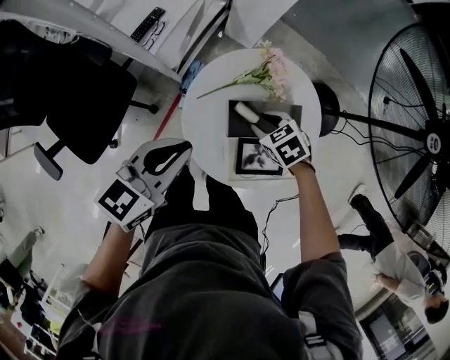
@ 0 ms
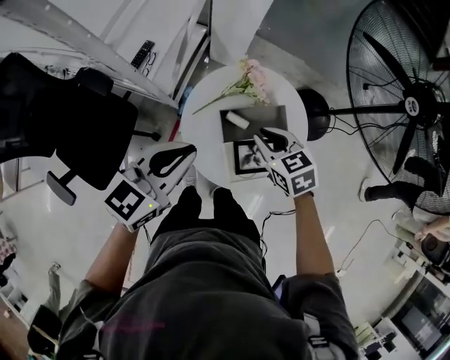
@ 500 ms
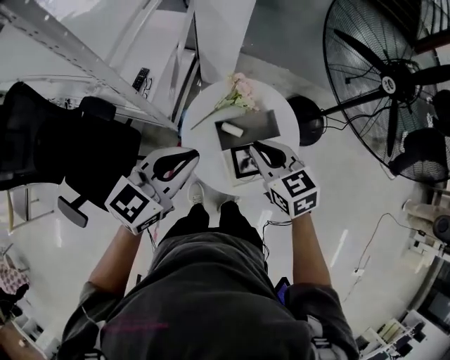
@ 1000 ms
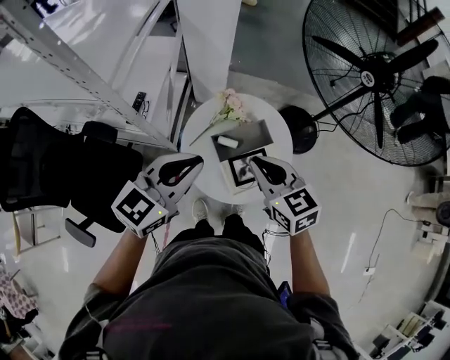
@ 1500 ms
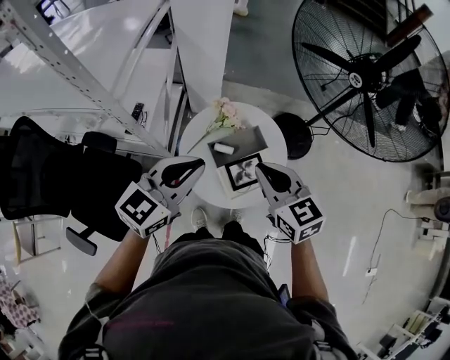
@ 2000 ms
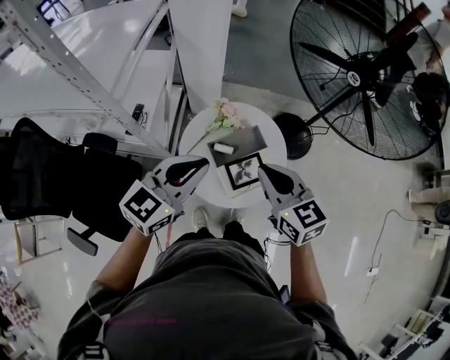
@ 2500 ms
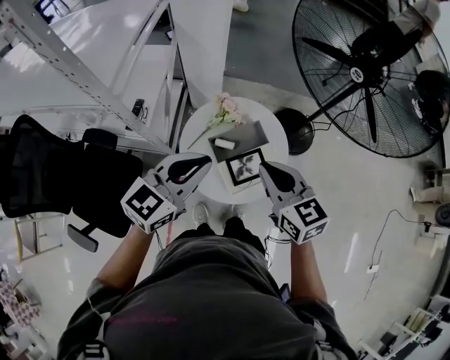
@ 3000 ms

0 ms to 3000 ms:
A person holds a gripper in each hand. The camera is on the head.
0 ms to 1500 ms: The left gripper heads upward, covering approximately 15 cm, and turns by about 30 degrees. The right gripper heads upward, covering roughly 30 cm, angles its fingers upward, by some 40 degrees, and closes.
1500 ms to 3000 ms: The right gripper changes place by about 5 cm.

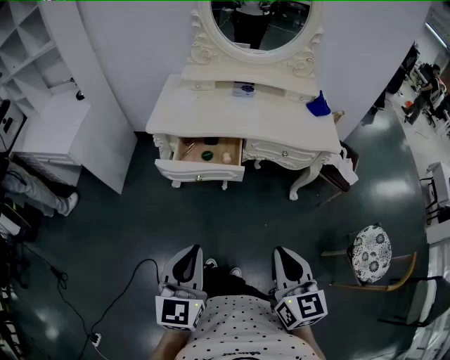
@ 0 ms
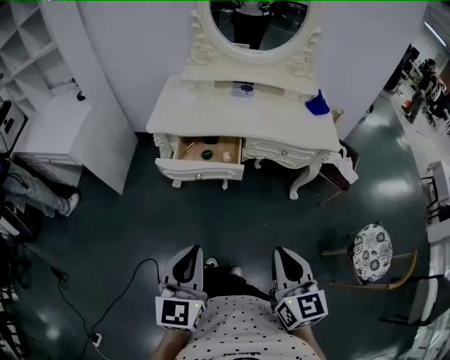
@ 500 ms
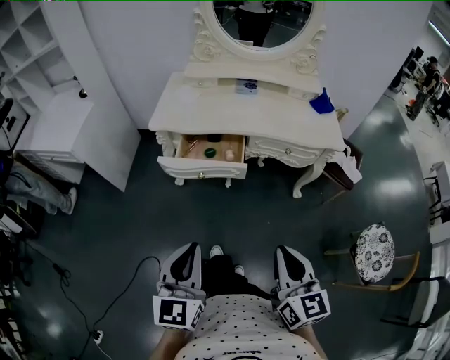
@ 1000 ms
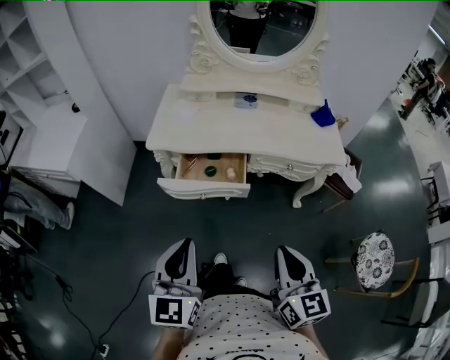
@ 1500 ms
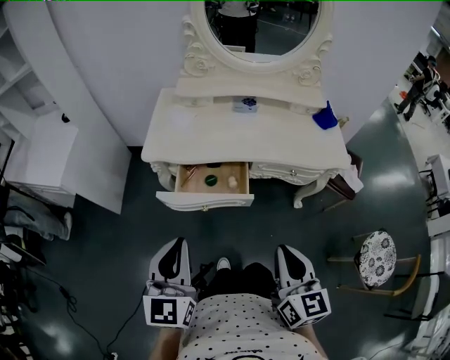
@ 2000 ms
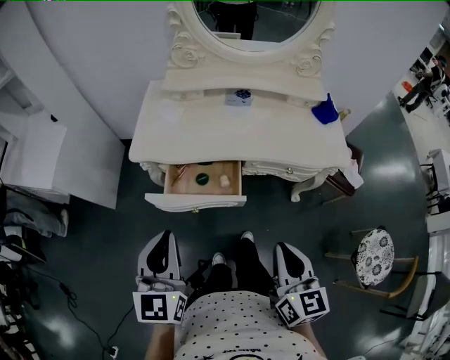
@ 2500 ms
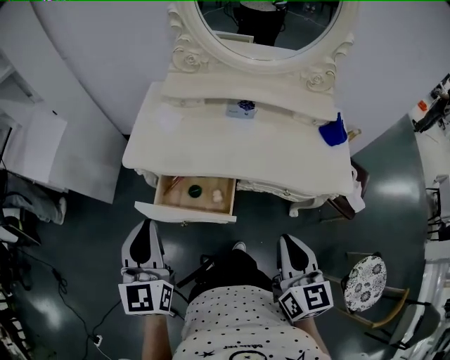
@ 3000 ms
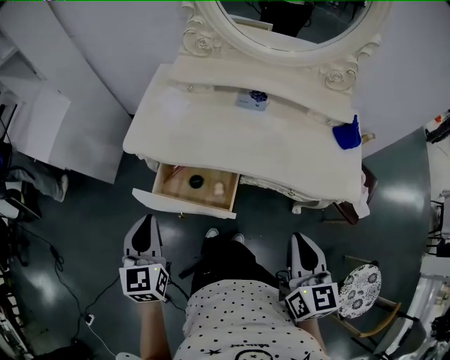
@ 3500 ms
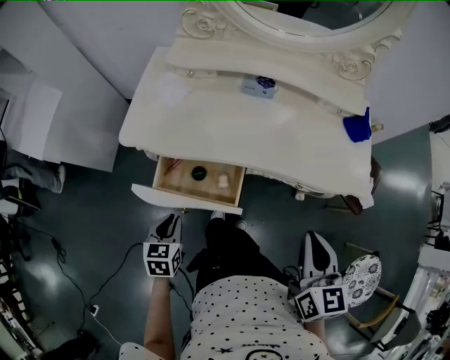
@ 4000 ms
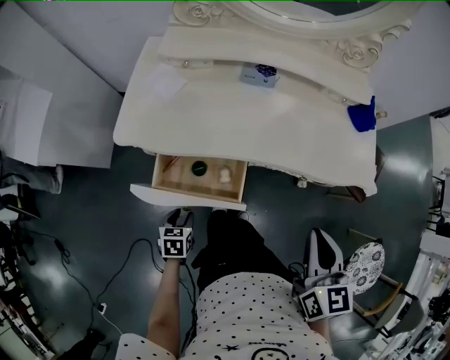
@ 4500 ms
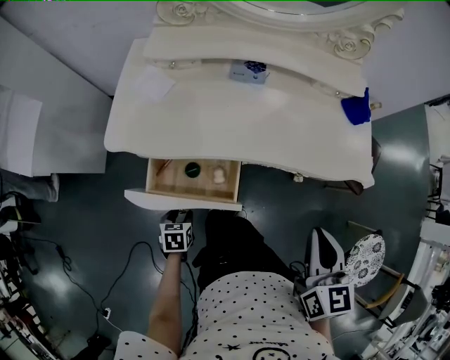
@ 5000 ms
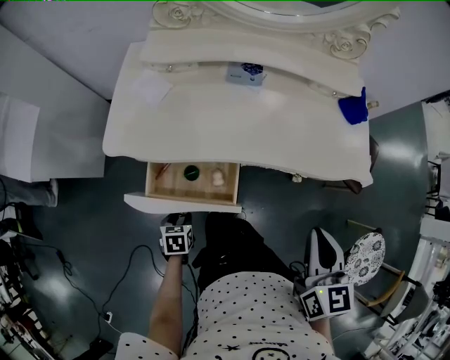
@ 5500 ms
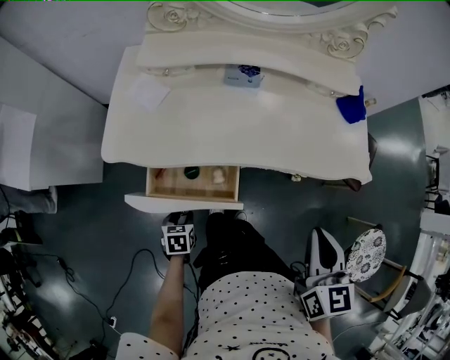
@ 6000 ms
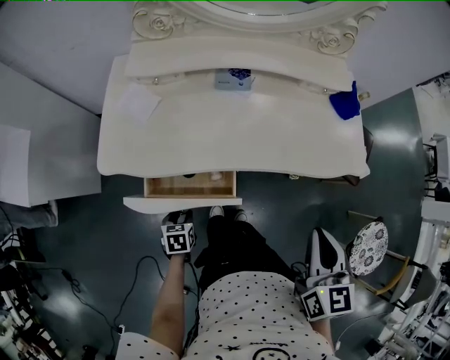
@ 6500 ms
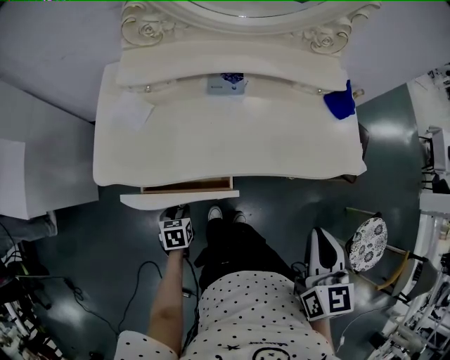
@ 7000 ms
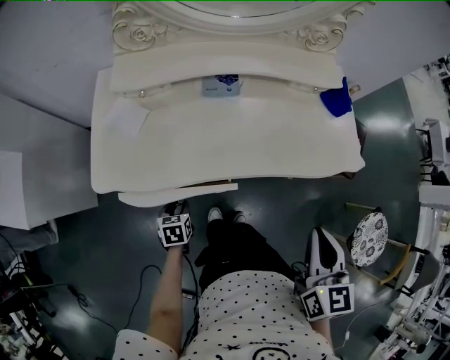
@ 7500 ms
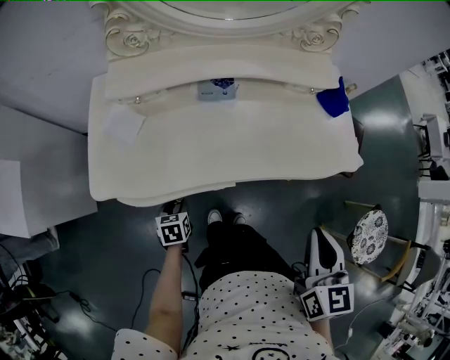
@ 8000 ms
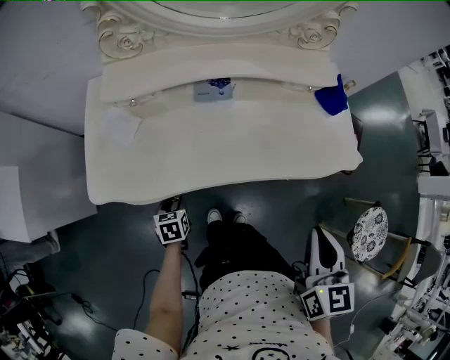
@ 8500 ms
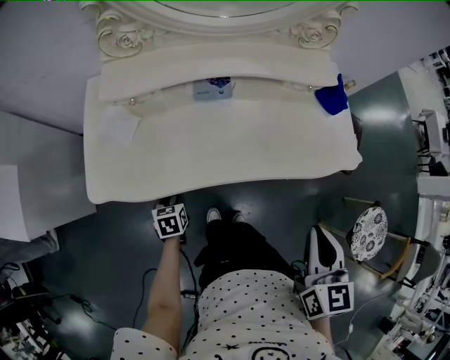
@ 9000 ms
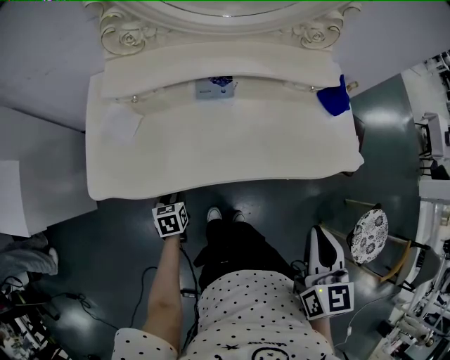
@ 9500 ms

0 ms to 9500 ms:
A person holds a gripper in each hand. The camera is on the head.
0 ms to 2000 ms: The right gripper heads forward, covering some 15 cm. The left gripper travels forward and to the left by about 20 cm.
2000 ms to 4000 ms: The left gripper heads downward and forward, covering approximately 30 cm, and tips its fingers downward by about 40 degrees, while the right gripper goes about 25 cm forward and to the right.
4000 ms to 5500 ms: The left gripper is displaced downward by some 15 cm, and opens up.
5500 ms to 7500 ms: The left gripper travels forward by roughly 10 cm.
7500 ms to 9500 ms: The left gripper is displaced forward by some 5 cm.

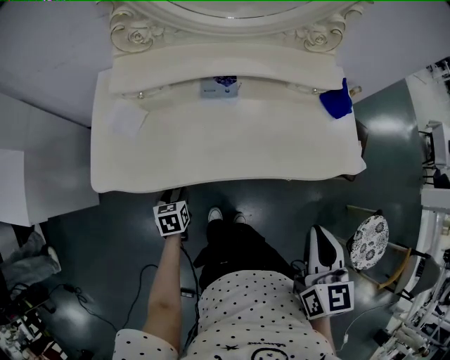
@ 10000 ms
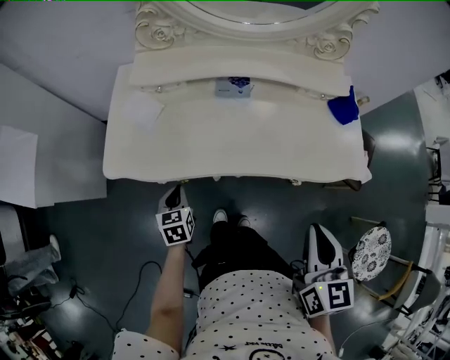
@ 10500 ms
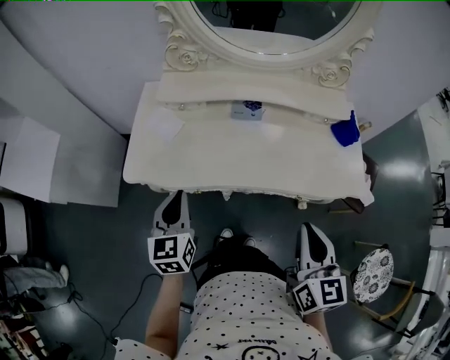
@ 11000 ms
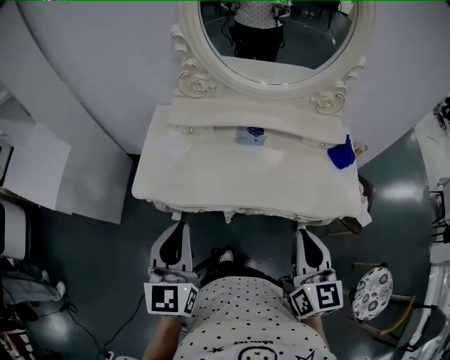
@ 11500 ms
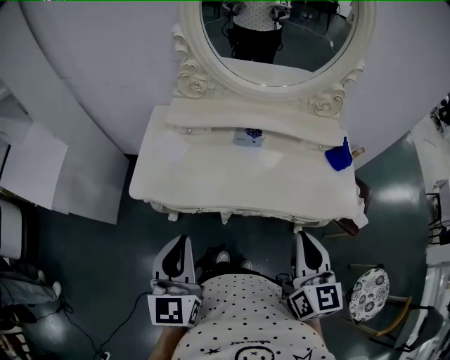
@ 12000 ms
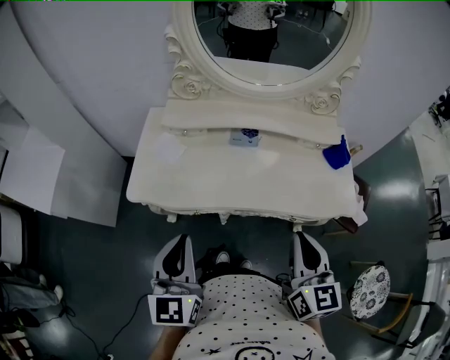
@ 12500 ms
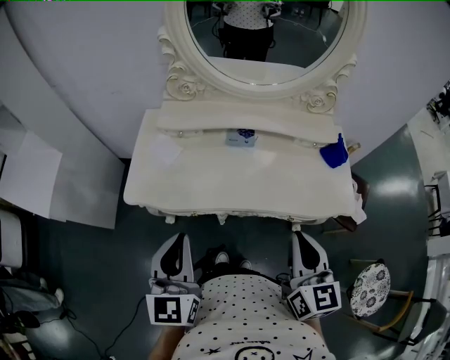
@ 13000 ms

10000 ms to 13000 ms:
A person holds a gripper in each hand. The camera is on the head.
10000 ms to 11500 ms: The right gripper shifts some 10 cm upward and to the left, and changes its angle by approximately 20 degrees, while the left gripper moves upward, some 40 cm, tips its fingers upward by approximately 50 degrees, and closes up.
11500 ms to 13000 ms: The grippers make only small movements.

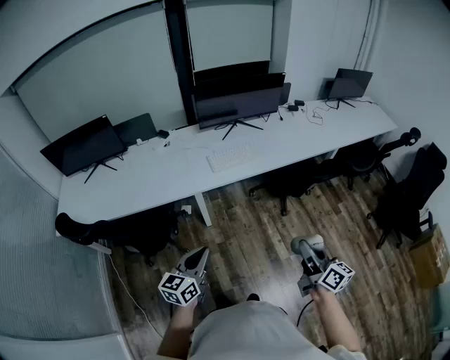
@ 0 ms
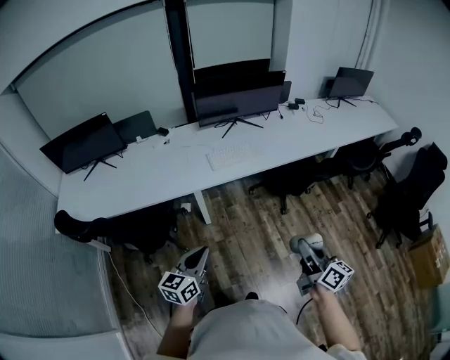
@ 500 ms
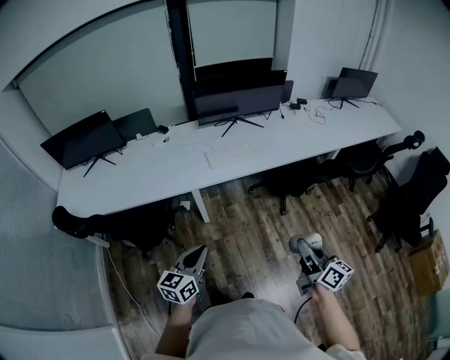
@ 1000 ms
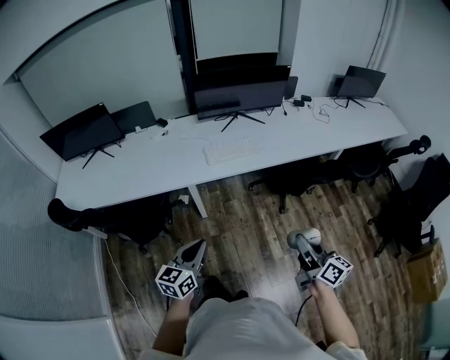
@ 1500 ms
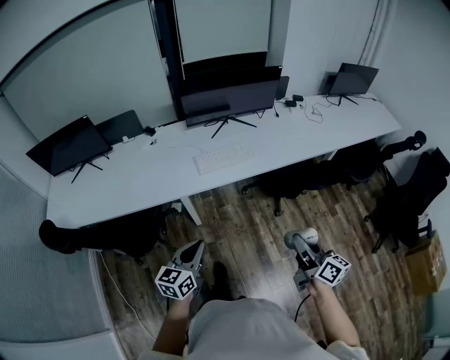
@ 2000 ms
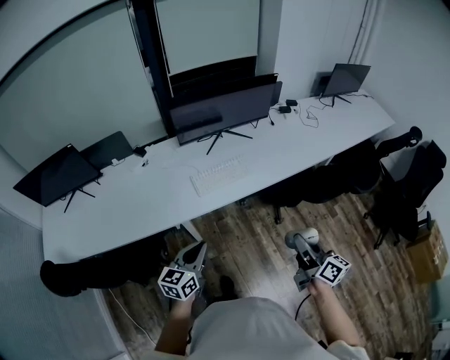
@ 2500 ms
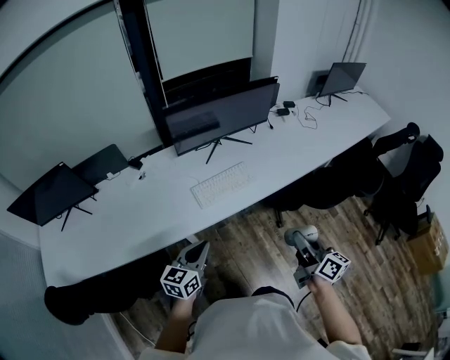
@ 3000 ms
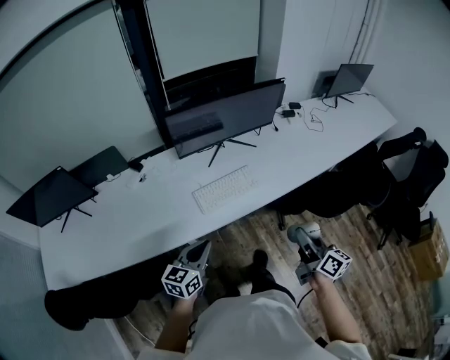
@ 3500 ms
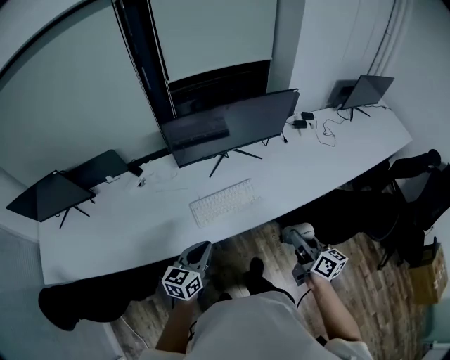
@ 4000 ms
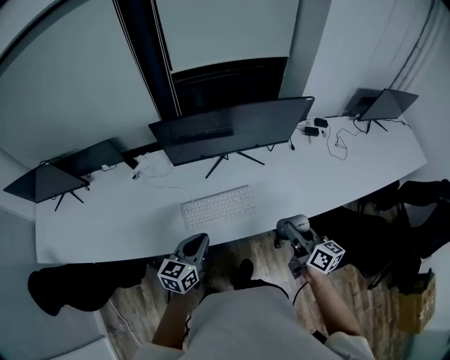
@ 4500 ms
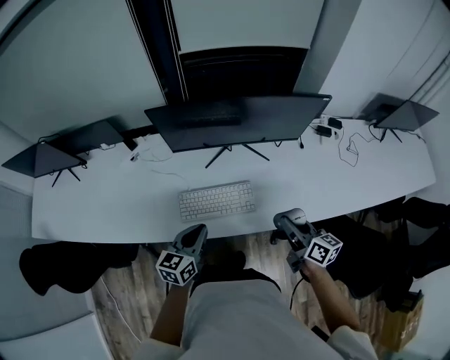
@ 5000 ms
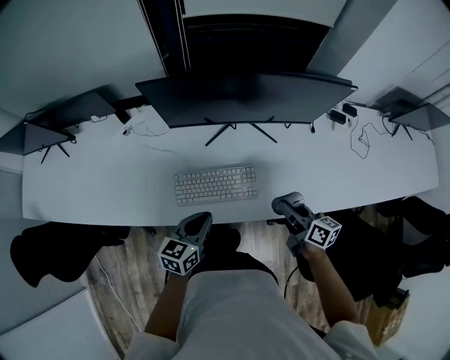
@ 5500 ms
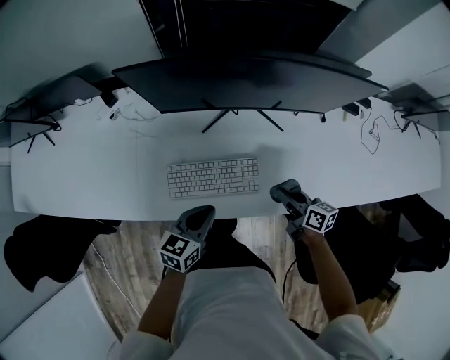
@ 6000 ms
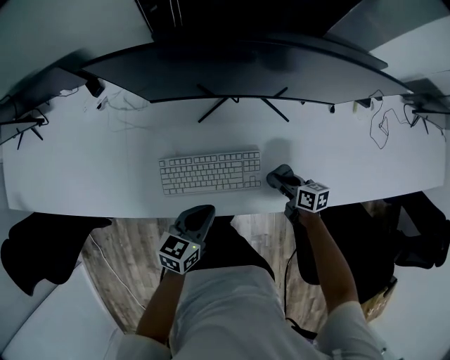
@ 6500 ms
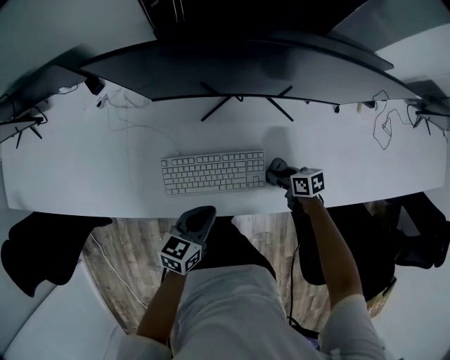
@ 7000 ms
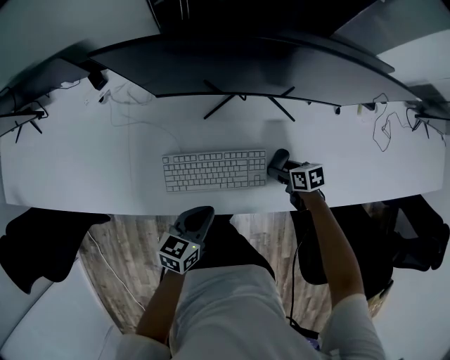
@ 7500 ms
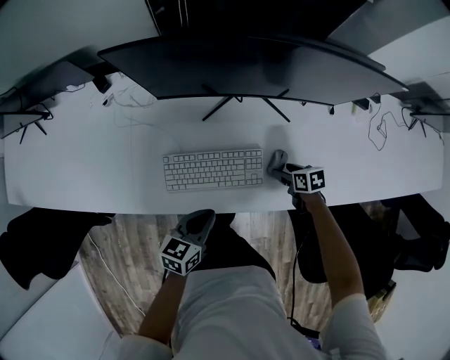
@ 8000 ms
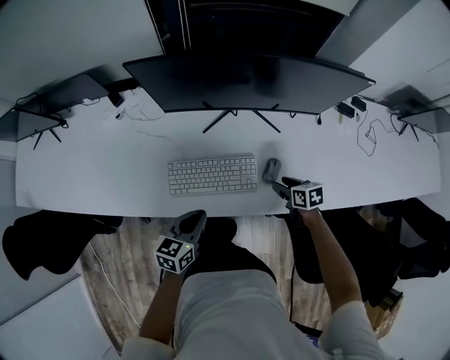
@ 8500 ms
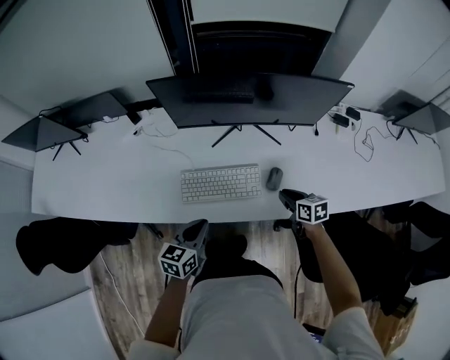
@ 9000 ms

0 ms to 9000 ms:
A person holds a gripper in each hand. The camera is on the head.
0 ms to 2000 ms: The left gripper is displaced forward and to the right by some 10 cm, while the right gripper goes roughly 10 cm forward.
2000 ms to 4500 ms: The two grippers go approximately 40 cm forward.
4500 ms to 7000 ms: The right gripper is displaced downward and forward by approximately 35 cm, and angles its fingers downward, by roughly 40 degrees. The left gripper travels downward by some 15 cm.
7000 ms to 9000 ms: The right gripper shifts roughly 15 cm upward, changes its angle by some 20 degrees, and opens and closes again. Meanwhile the left gripper goes about 10 cm upward and backward.

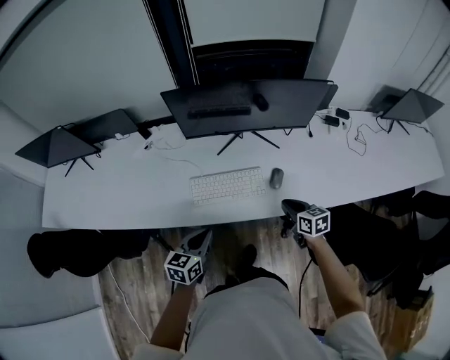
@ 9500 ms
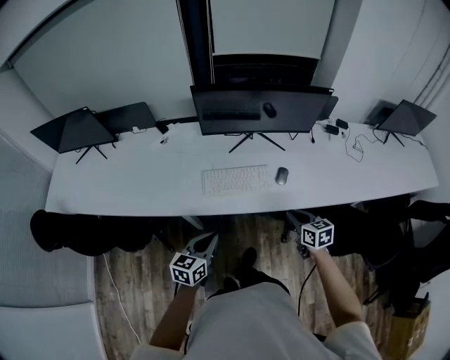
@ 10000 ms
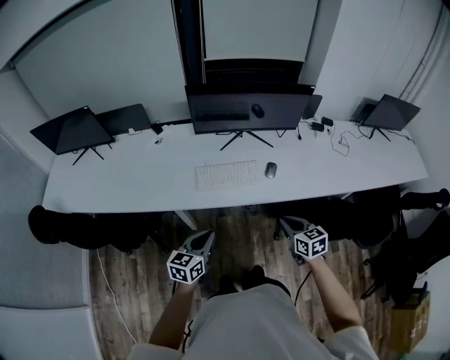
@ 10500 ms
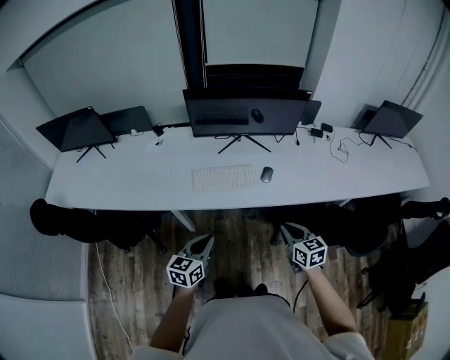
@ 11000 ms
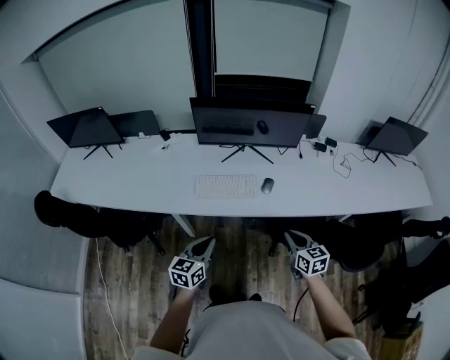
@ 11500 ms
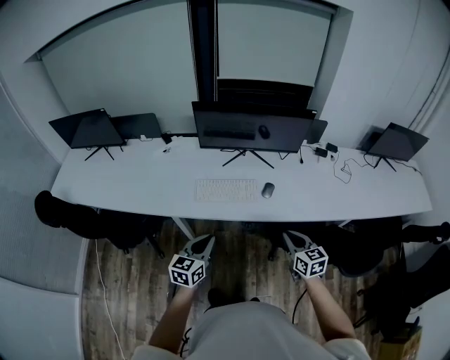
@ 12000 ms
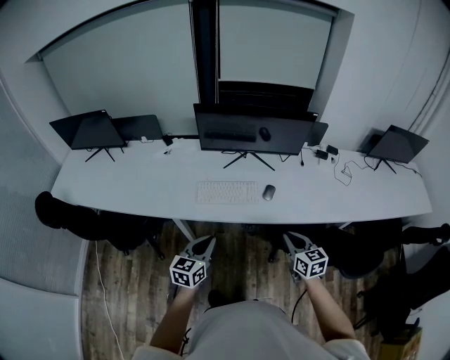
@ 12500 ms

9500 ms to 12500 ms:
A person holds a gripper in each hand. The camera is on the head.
9500 ms to 11000 ms: The left gripper is displaced backward by approximately 15 cm, while the right gripper travels backward and upward by some 20 cm.
11000 ms to 12500 ms: The grippers make only small movements.
